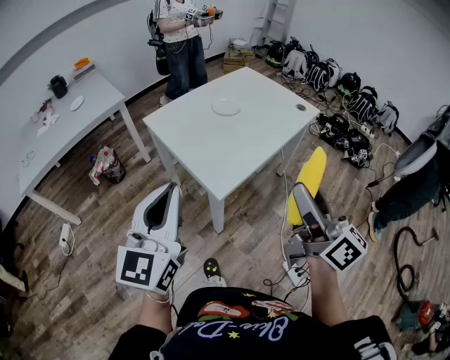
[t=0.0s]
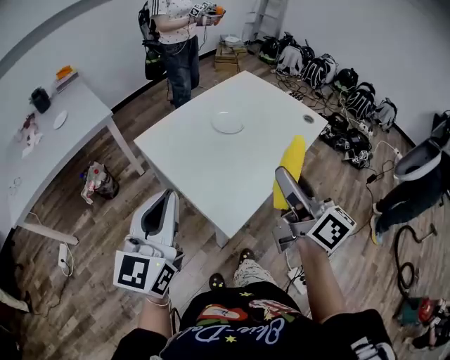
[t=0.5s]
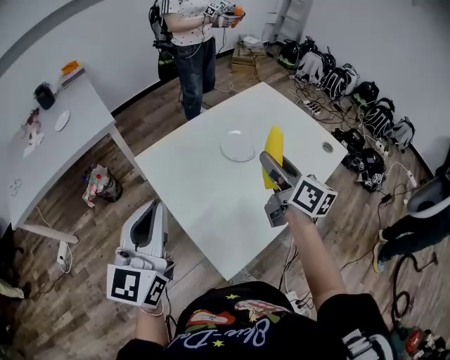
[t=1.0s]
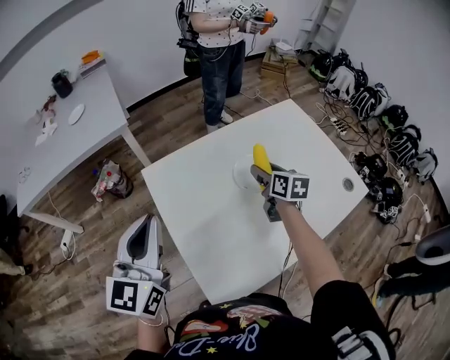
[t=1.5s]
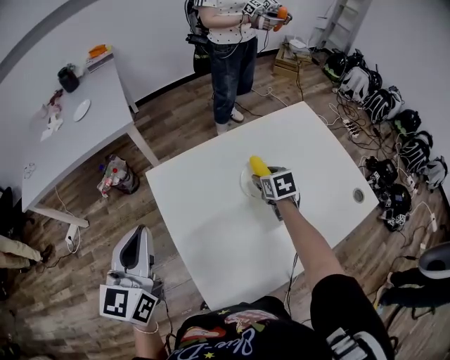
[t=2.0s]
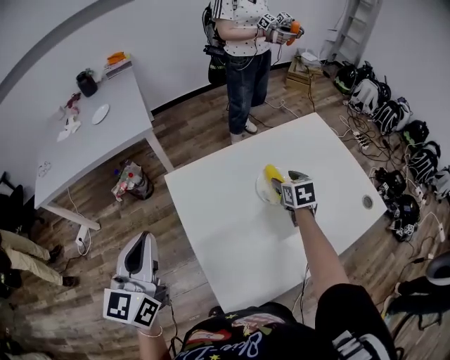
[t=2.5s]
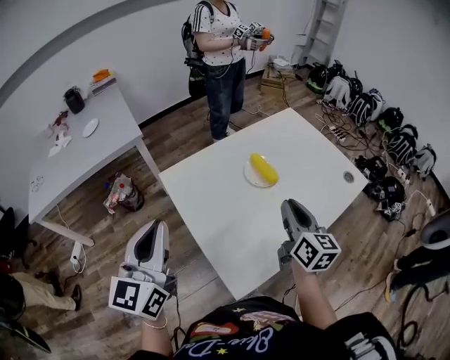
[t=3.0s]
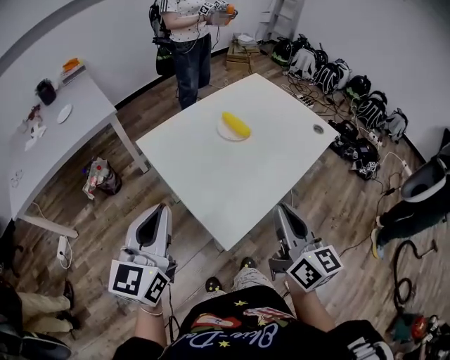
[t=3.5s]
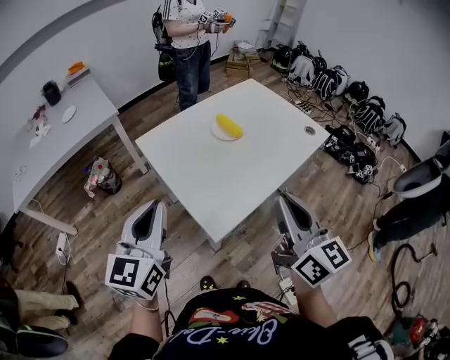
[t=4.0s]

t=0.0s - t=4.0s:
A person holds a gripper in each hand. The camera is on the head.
t=0.0s - t=2.0s: The pair of grippers is taken forward, roughly 50 cm. The left gripper swivels about 30 degrees; the right gripper moves downward, approximately 35 cm, and angles its fingers downward, by roughly 60 degrees.
t=2.0s - t=4.0s: The right gripper moves backward and upward, some 60 cm, tilts its fingers some 50 degrees upward, and closes its fingers; the left gripper travels backward by approximately 25 cm, and changes its angle by approximately 20 degrees.

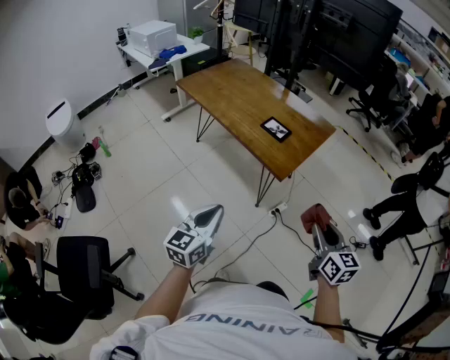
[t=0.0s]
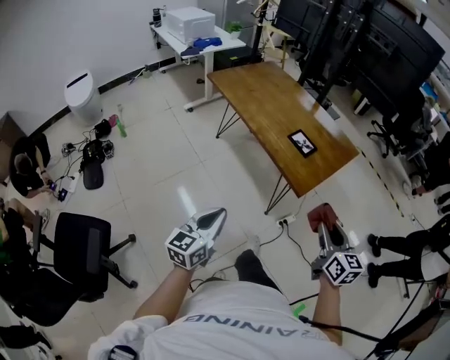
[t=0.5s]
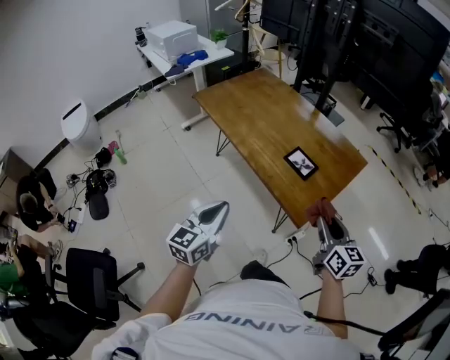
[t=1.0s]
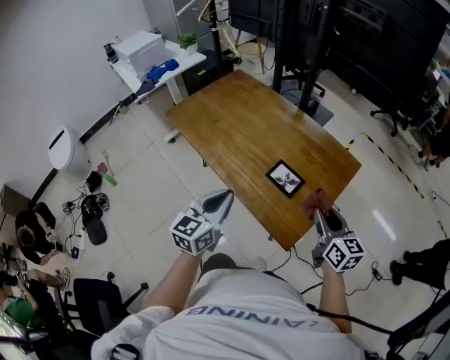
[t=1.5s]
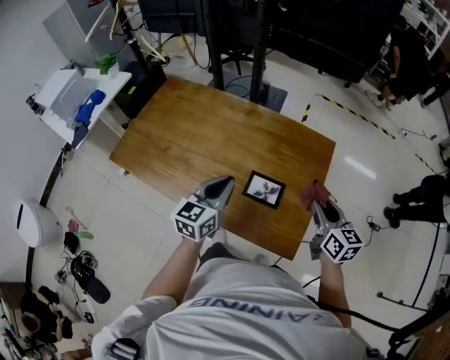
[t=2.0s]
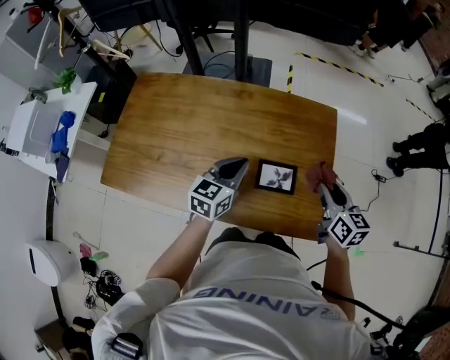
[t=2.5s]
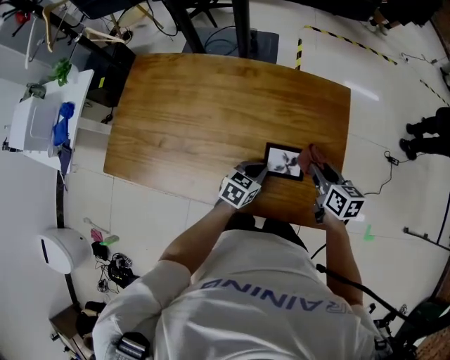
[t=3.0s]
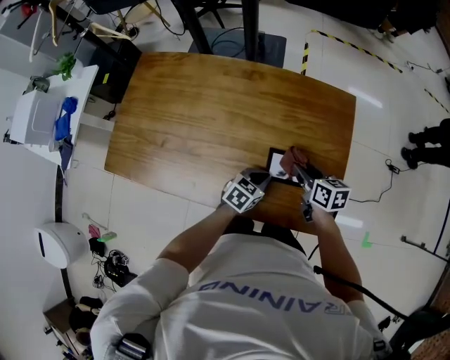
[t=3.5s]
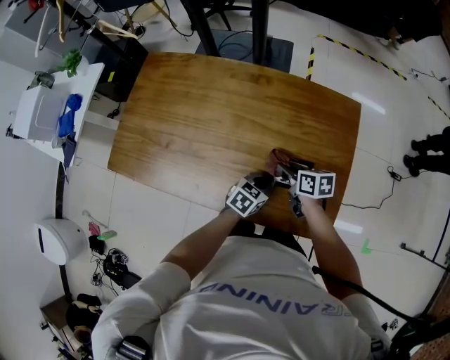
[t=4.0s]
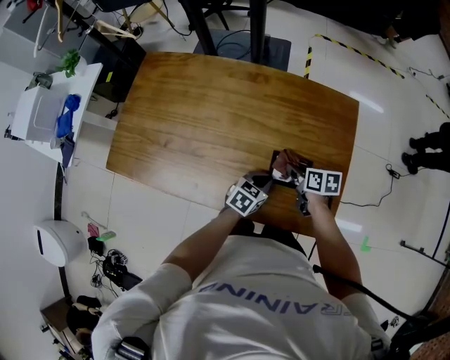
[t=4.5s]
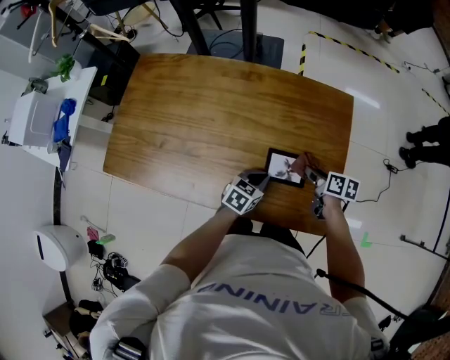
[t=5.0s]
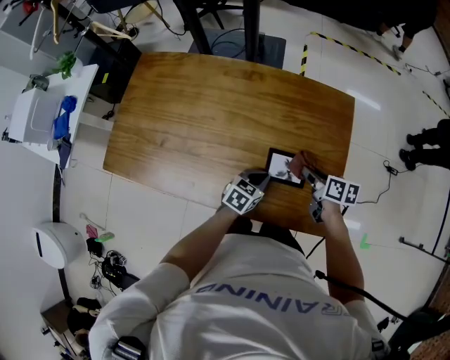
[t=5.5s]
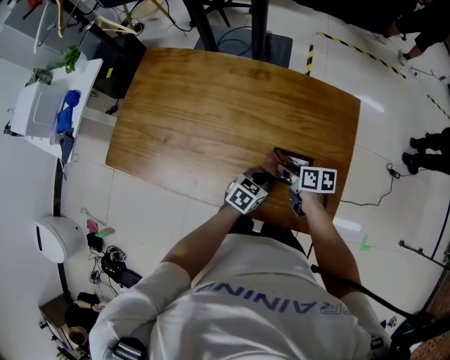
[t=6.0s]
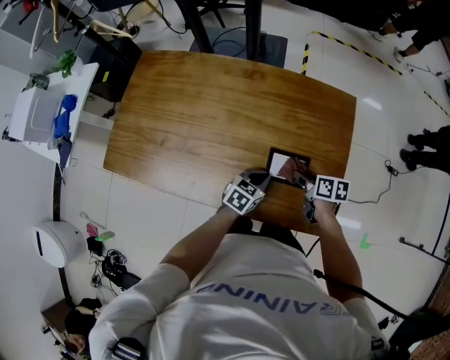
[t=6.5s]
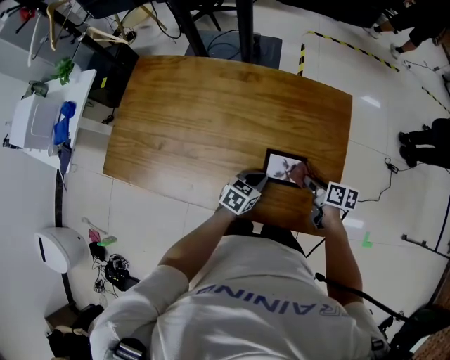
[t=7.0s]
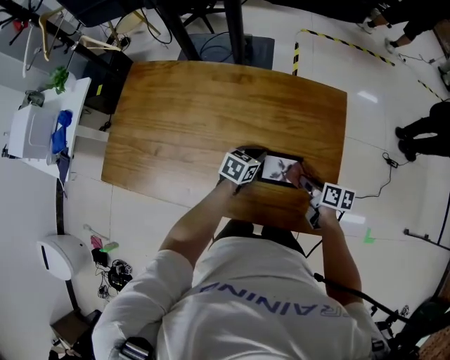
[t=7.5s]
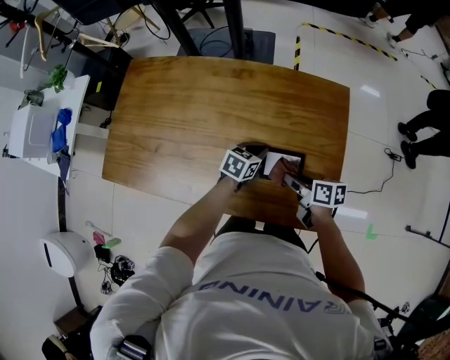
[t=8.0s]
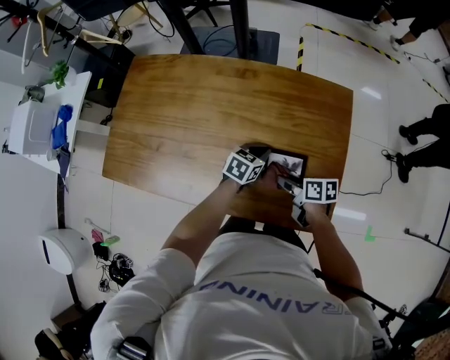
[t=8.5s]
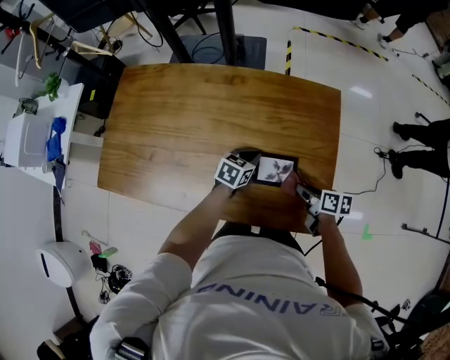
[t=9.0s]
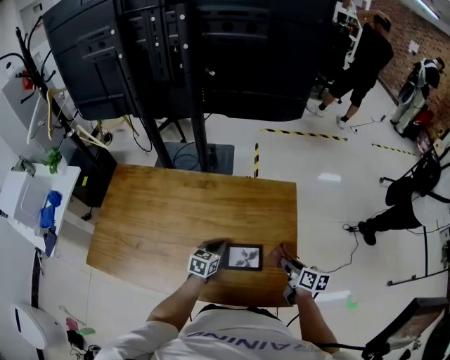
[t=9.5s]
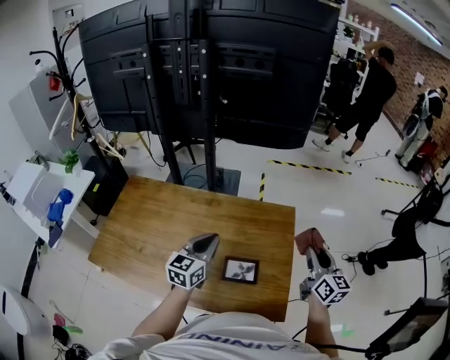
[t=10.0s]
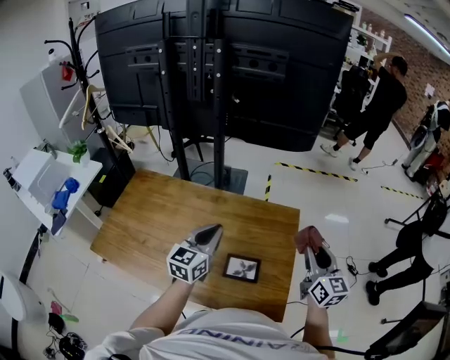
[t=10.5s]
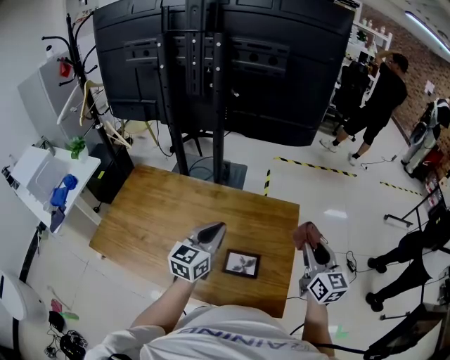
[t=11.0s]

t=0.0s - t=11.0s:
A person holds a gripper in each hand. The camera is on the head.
t=0.0s - t=2.0s: Both grippers are carried approximately 50 cm. The right gripper swivels about 20 degrees. Meanwhile the left gripper rotates some 30 degrees.
t=2.0s - t=3.5s: The right gripper shifts about 20 cm downward and to the left, and turns by some 30 degrees, while the left gripper goes approximately 25 cm downward, and changes its angle by some 40 degrees.
t=3.5s - t=5.5s: The right gripper moves approximately 5 cm to the left and comes back.
t=5.5s - t=7.5s: The right gripper reaches roughly 10 cm to the left, then returns; the left gripper travels forward by roughly 10 cm.
t=7.5s - t=9.0s: The right gripper travels to the left and back again, approximately 10 cm each way.
t=9.0s - t=11.0s: The two grippers go approximately 30 cm upward. The right gripper angles its fingers upward, by approximately 30 degrees; the left gripper points its fingers some 30 degrees further upward.

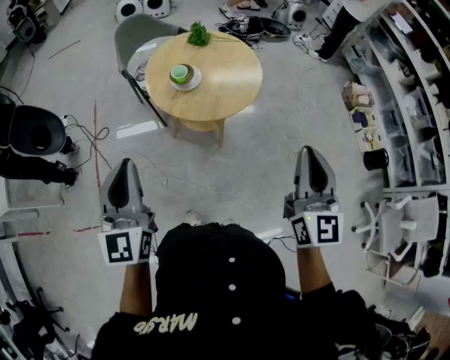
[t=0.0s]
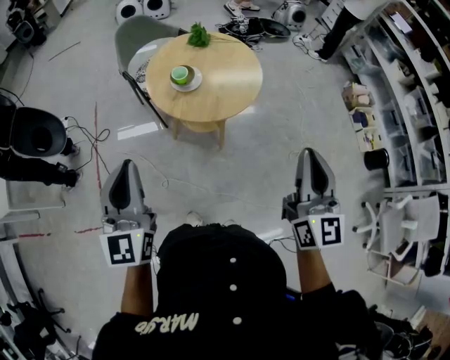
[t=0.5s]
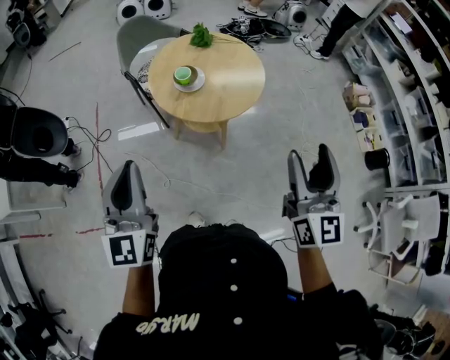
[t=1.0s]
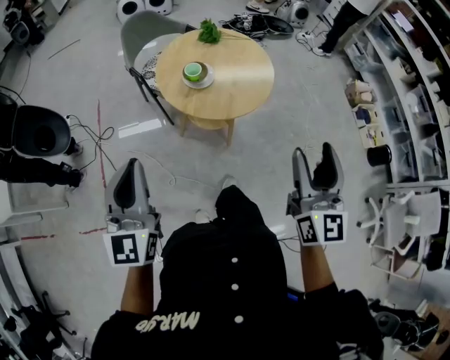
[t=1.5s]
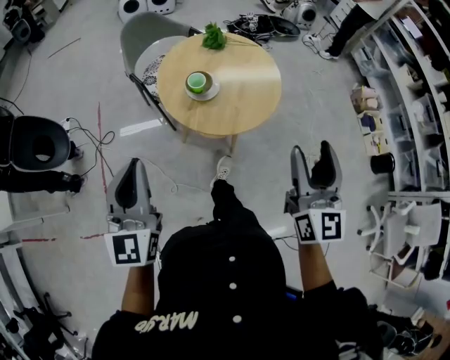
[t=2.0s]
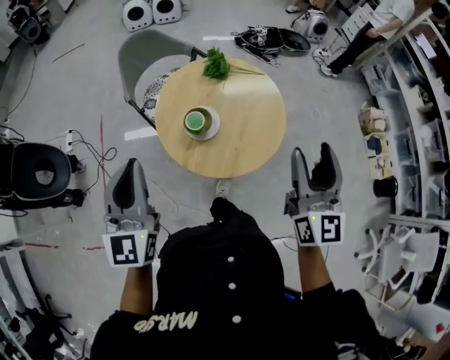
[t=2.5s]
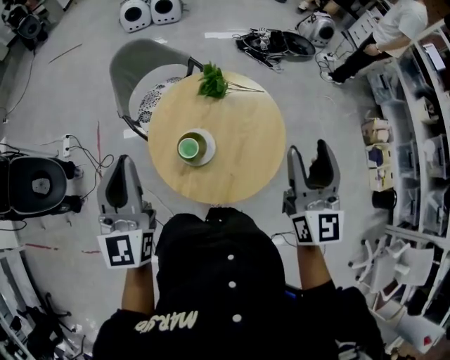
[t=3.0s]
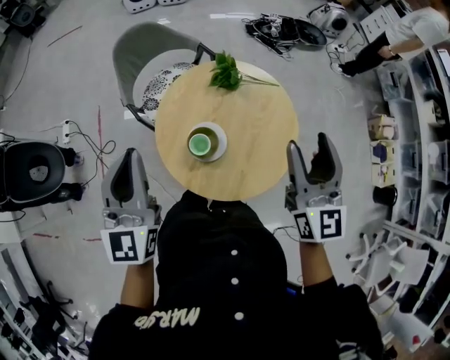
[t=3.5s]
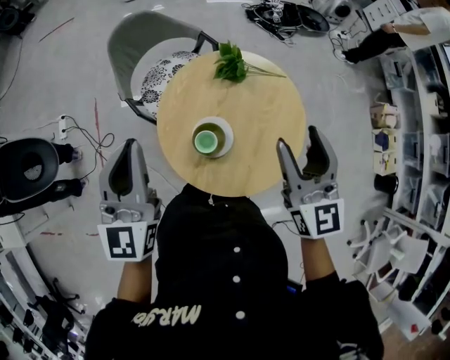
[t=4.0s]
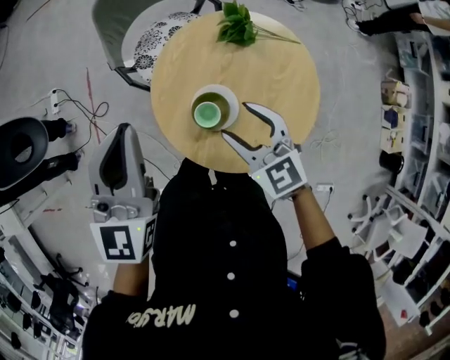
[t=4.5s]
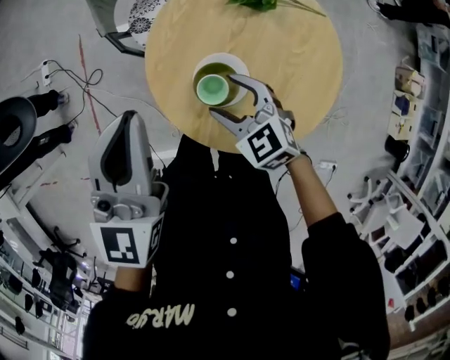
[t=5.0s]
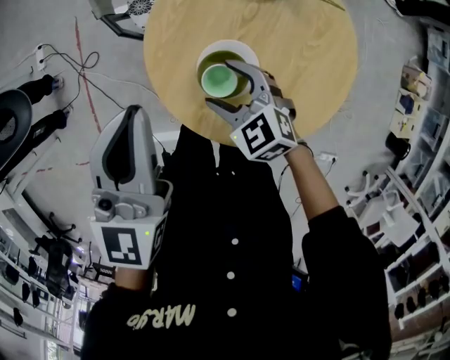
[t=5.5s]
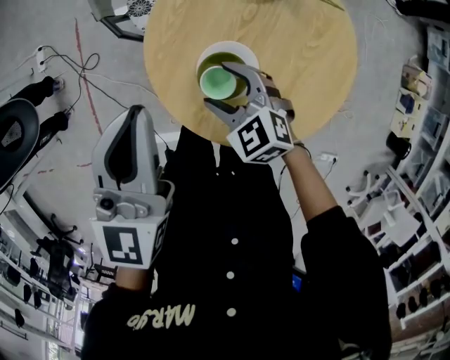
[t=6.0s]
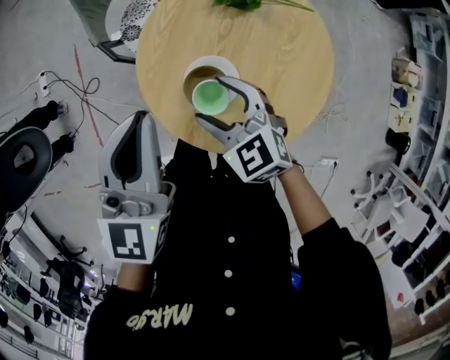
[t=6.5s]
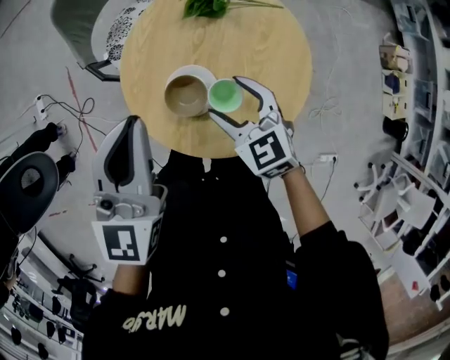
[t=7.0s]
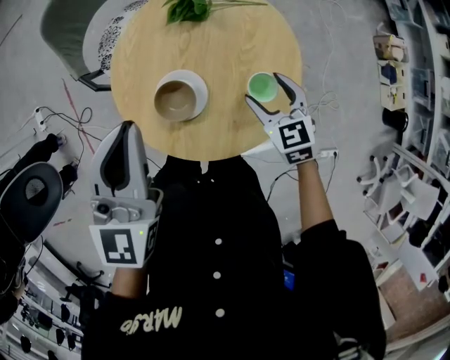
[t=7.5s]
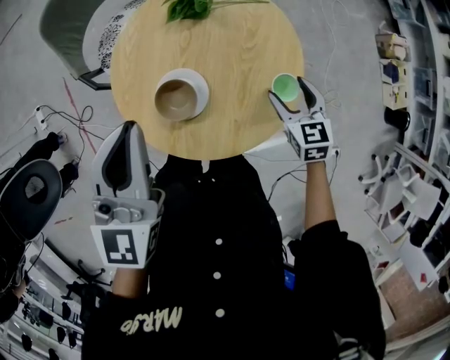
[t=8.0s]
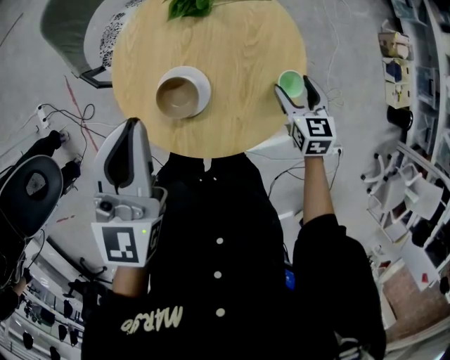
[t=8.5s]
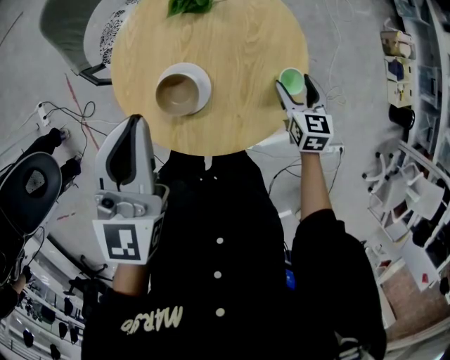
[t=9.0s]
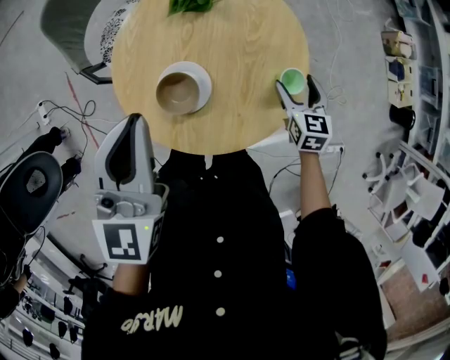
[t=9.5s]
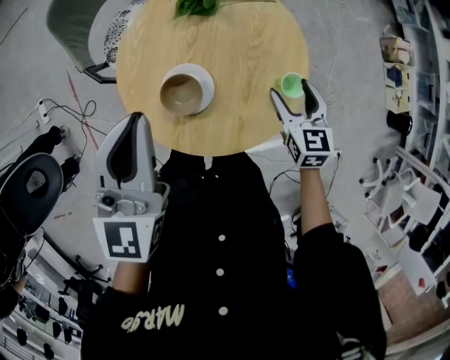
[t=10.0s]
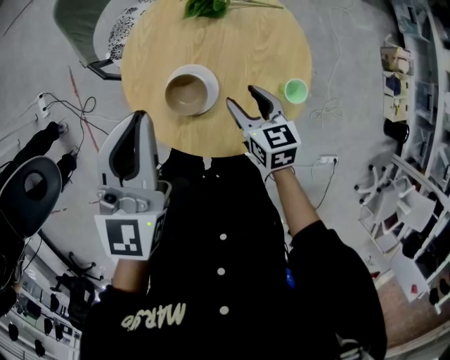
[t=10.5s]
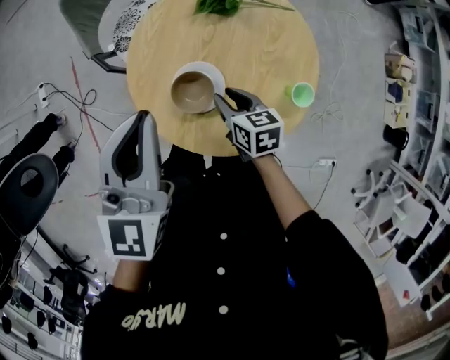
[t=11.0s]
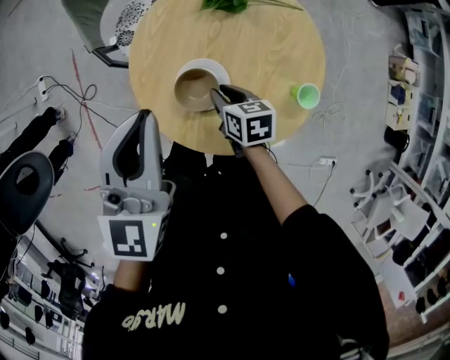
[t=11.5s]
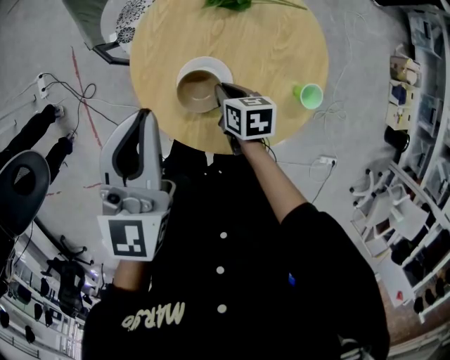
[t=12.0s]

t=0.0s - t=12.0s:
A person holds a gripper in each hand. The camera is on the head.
t=0.0s - t=2.0s: Both grippers move forward and to the left, about 15 cm. The right gripper opens its fingers.
t=2.0s - t=4.0s: The pair of grippers is taken forward, approximately 40 cm.
t=4.0s - t=6.0s: The right gripper shifts some 40 cm downward and to the left, and tips its fingers downward by approximately 40 degrees, while the left gripper shifts about 15 cm downward.
t=6.0s - t=8.0s: The left gripper moves roughly 15 cm. Meanwhile the right gripper shifts by approximately 35 cm, and rotates some 50 degrees.
t=8.0s - t=10.0s: The grippers move only a little.
t=10.0s - t=12.0s: The left gripper shifts by some 5 cm. Meanwhile the right gripper shifts some 25 cm to the left and downward, swivels roughly 40 degrees, and closes.
